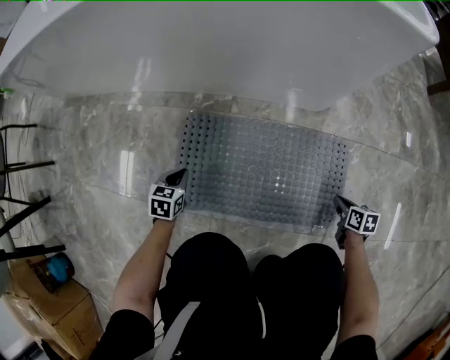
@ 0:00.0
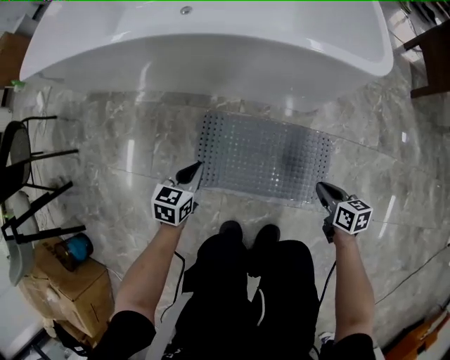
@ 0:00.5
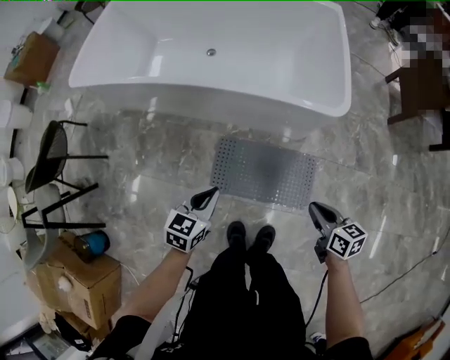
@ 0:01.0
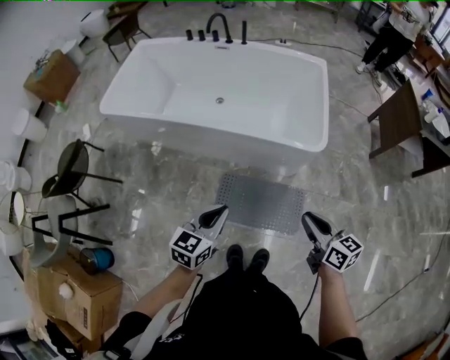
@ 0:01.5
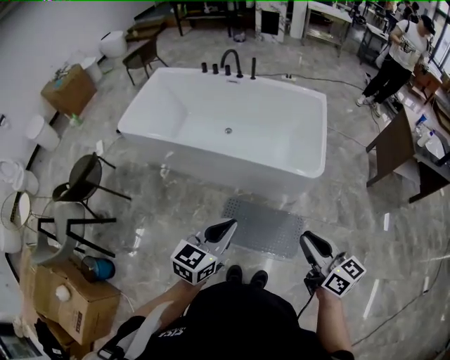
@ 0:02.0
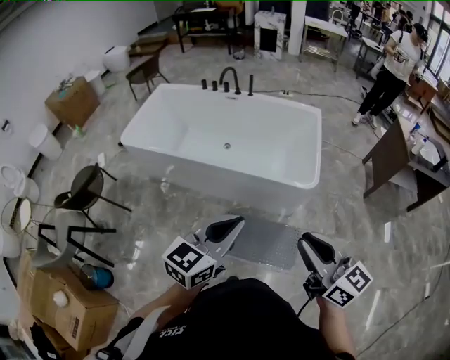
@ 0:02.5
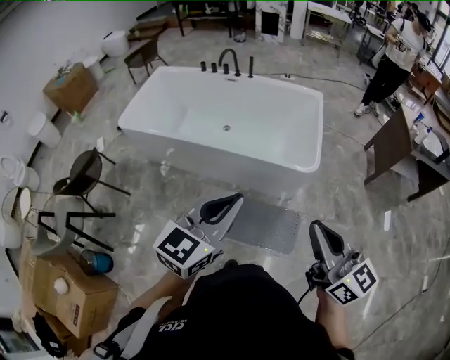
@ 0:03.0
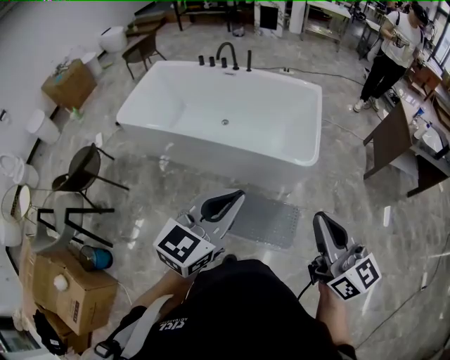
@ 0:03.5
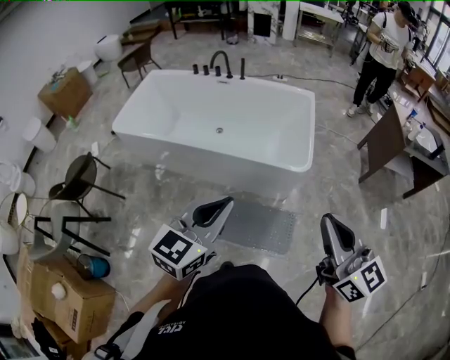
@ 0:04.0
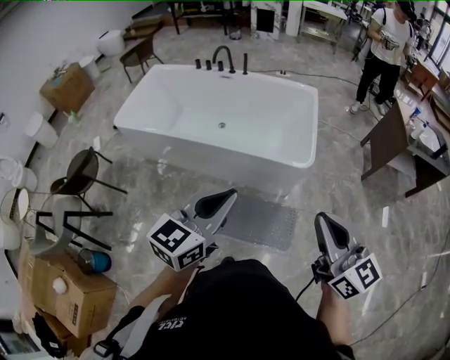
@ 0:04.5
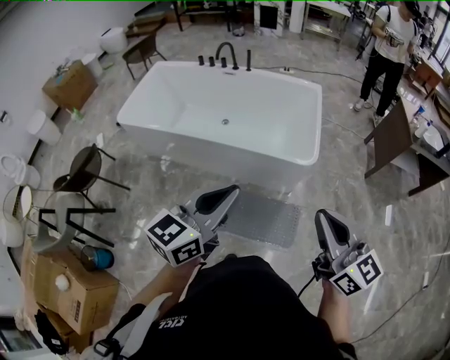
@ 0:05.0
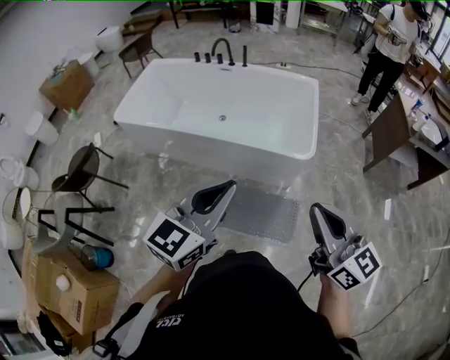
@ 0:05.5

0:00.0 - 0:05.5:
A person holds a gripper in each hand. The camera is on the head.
0:00.0 - 0:02.0: Both grippers move upward, some 90 cm. The left gripper points its fingers some 40 degrees further upward. The right gripper angles its fingers upward, by approximately 50 degrees.
0:02.0 - 0:03.5: The grippers both shift upward by about 15 cm.
0:03.5 - 0:05.5: The grippers make only small movements.

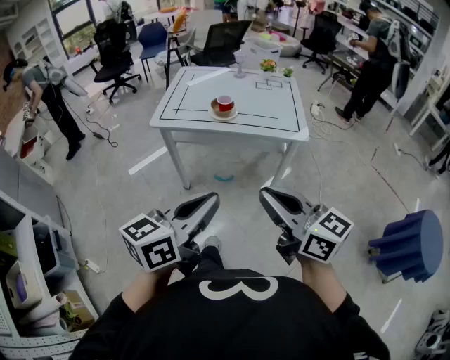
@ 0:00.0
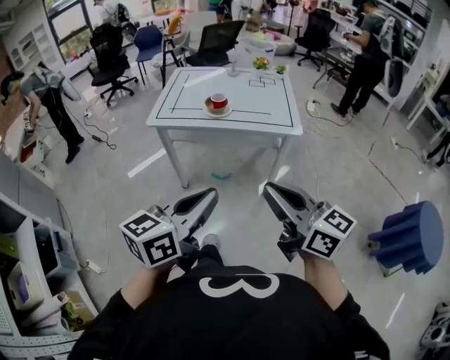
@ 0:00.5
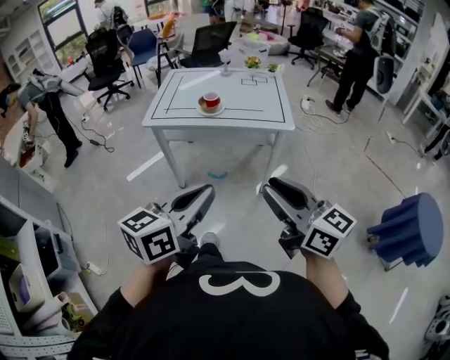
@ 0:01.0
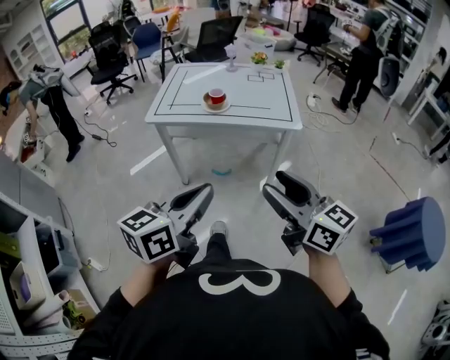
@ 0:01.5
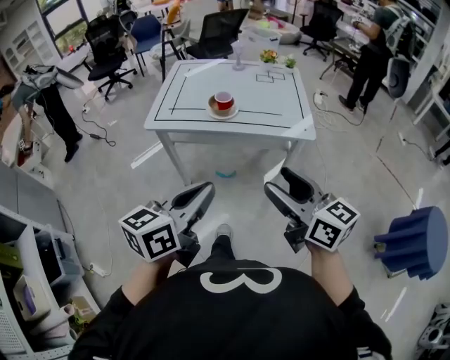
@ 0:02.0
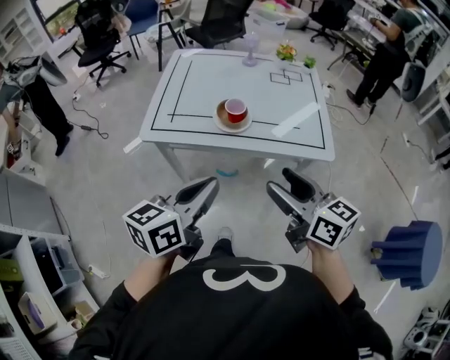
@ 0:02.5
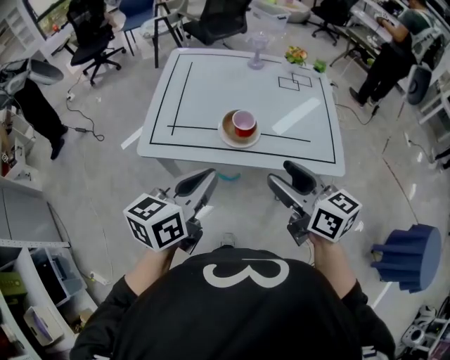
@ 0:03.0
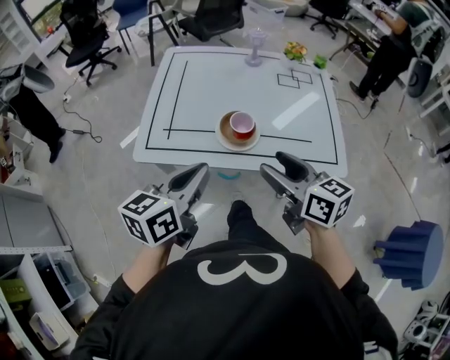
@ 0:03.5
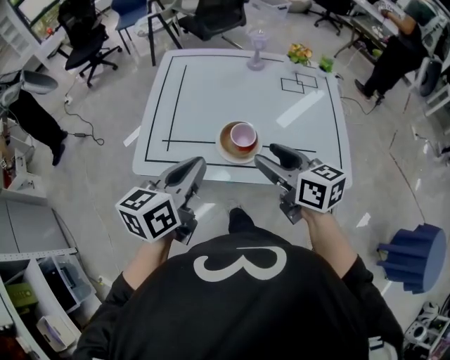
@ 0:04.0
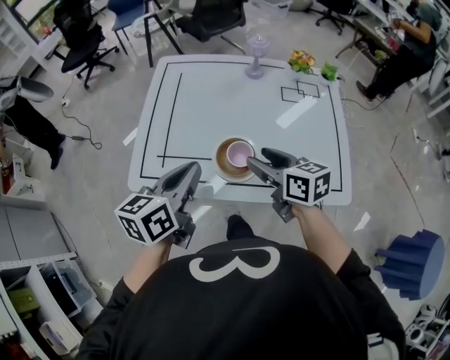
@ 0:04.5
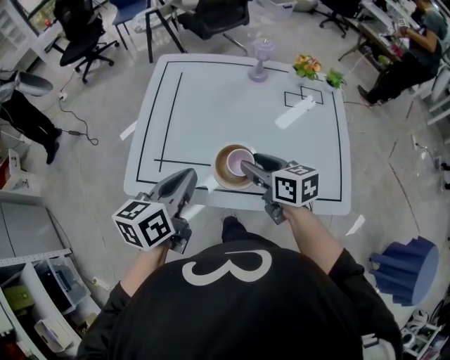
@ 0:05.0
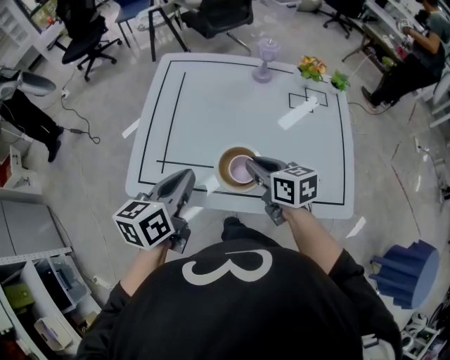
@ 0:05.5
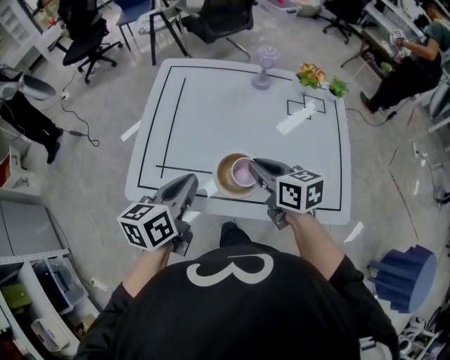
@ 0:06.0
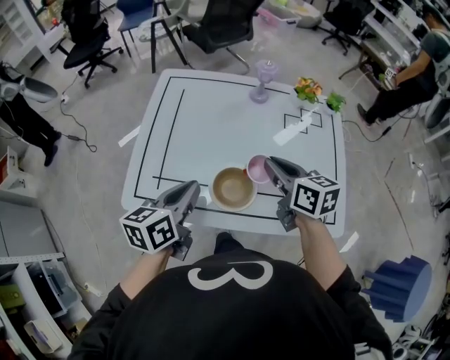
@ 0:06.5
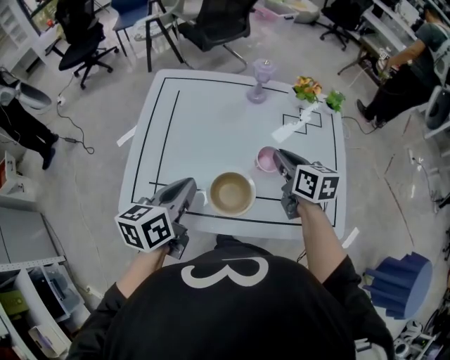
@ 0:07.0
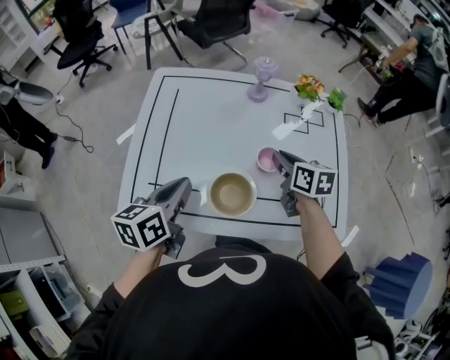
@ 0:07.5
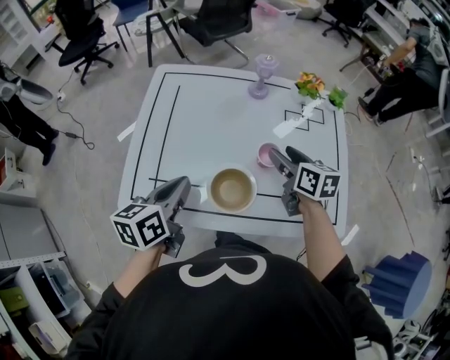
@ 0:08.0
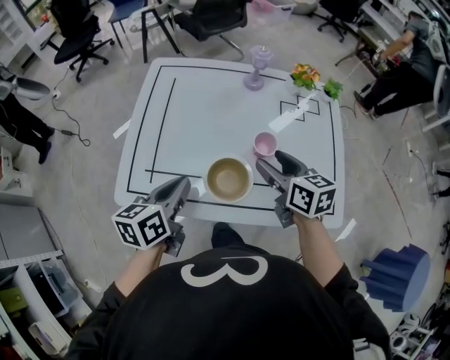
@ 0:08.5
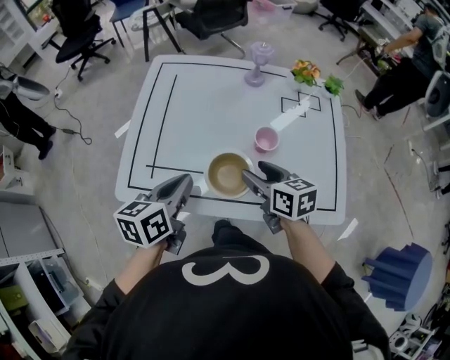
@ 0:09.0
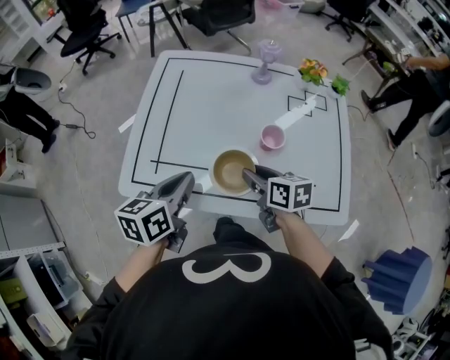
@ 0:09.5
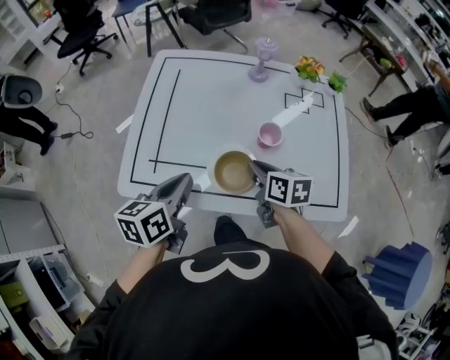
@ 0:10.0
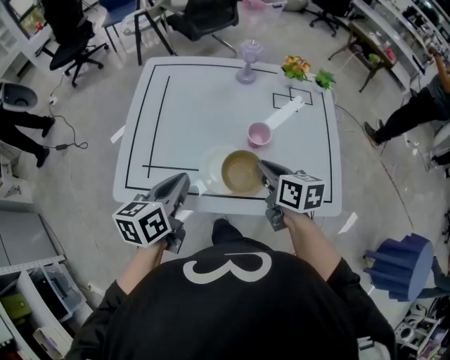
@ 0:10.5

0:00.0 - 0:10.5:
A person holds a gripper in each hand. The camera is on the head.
0:00.0 - 0:02.0: The two grippers go approximately 10 cm forward. The right gripper opens up.
0:02.0 - 0:04.0: Both grippers move forward, roughly 40 cm.
0:04.0 - 0:06.5: The left gripper travels forward and downward by roughly 10 cm. Meanwhile the right gripper goes roughly 15 cm forward, and closes its fingers.
0:06.5 - 0:08.5: The right gripper opens its fingers.
0:08.5 - 0:10.5: The right gripper closes up.

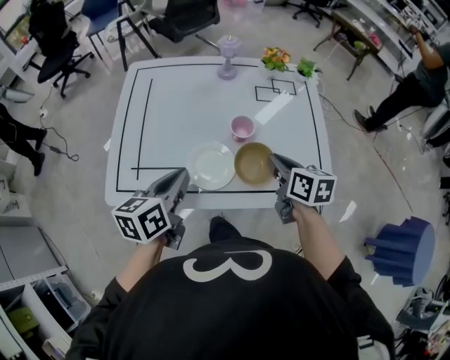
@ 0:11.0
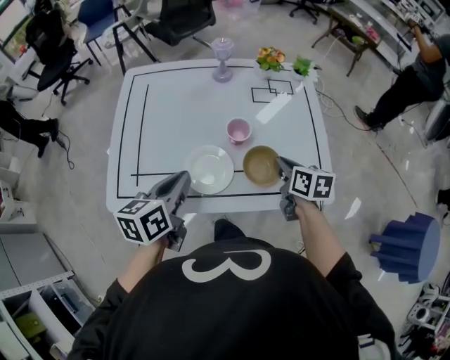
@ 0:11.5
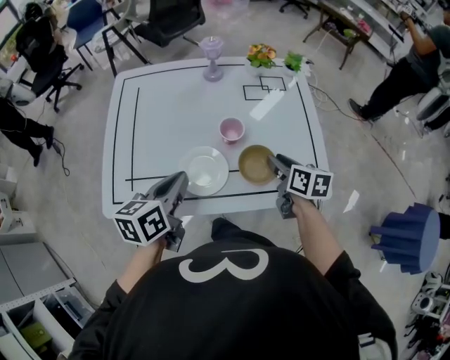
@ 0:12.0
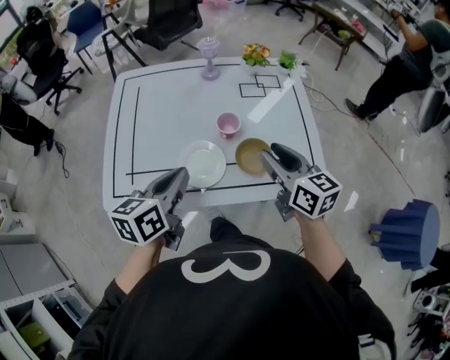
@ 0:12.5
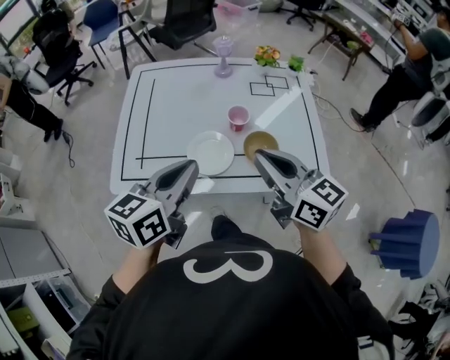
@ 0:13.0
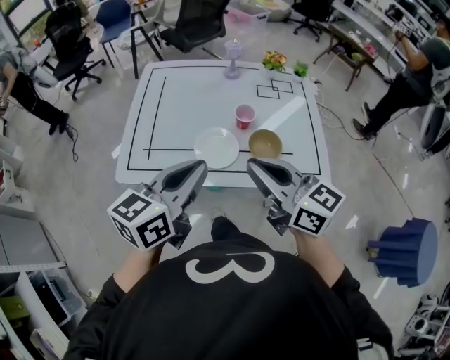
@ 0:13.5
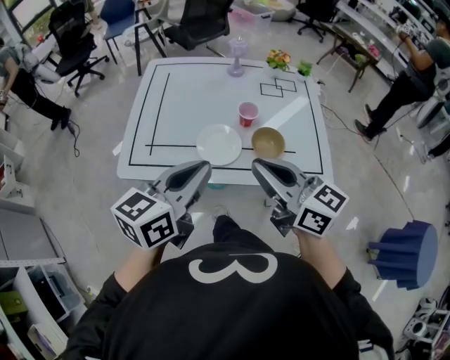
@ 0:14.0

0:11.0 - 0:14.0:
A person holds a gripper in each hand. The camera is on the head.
0:11.0 - 0:12.5: The right gripper heads upward, covering approximately 5 cm, rotates roughly 20 degrees, and opens up.
0:12.5 - 0:14.0: The right gripper shifts roughly 20 cm backward, to the left and upward, changes its angle by about 30 degrees, and closes its fingers. Meanwhile the left gripper heads backward and upward, covering some 15 cm.

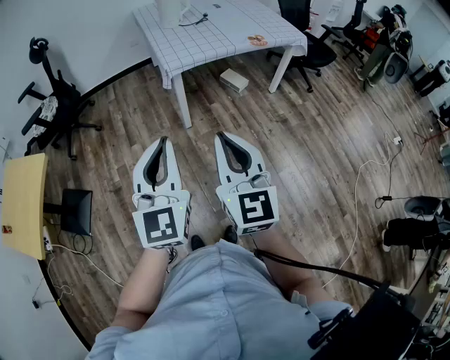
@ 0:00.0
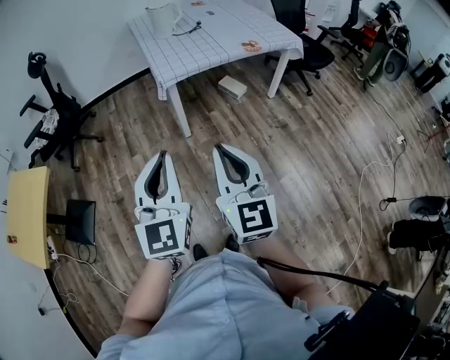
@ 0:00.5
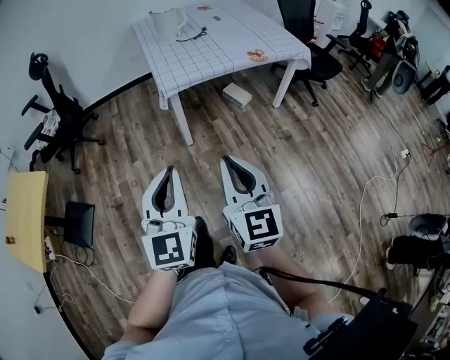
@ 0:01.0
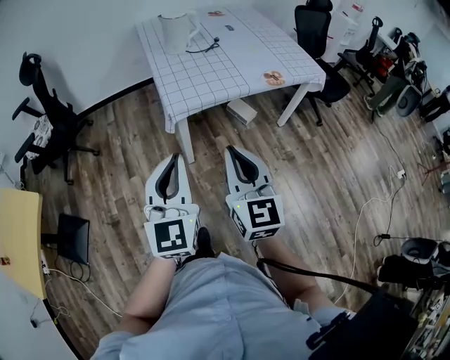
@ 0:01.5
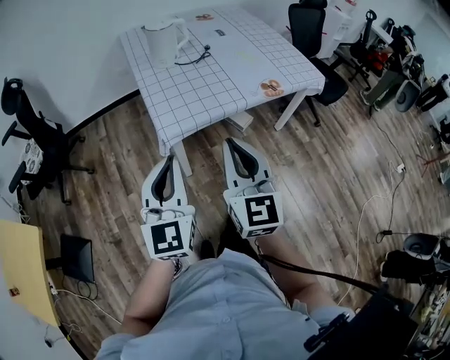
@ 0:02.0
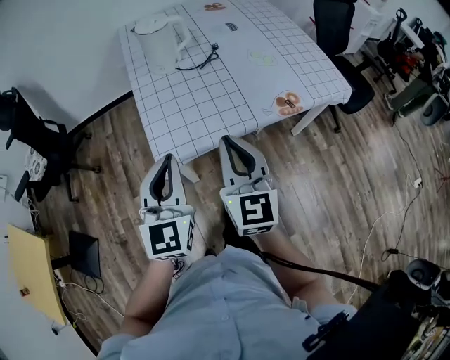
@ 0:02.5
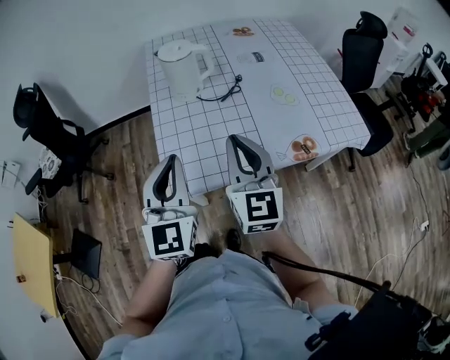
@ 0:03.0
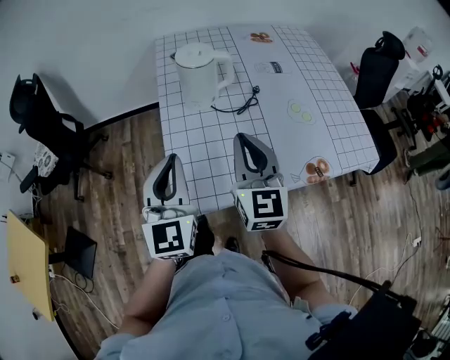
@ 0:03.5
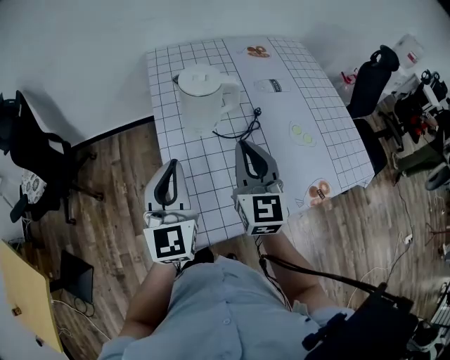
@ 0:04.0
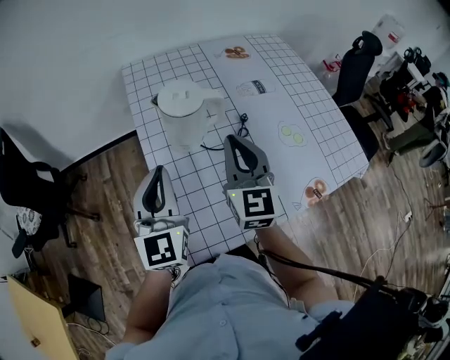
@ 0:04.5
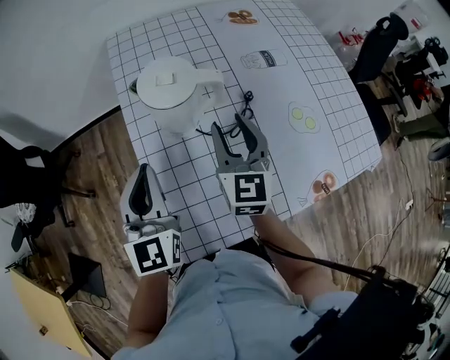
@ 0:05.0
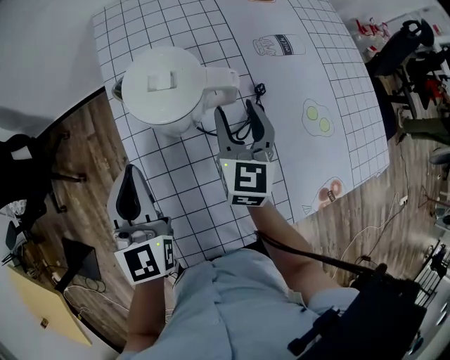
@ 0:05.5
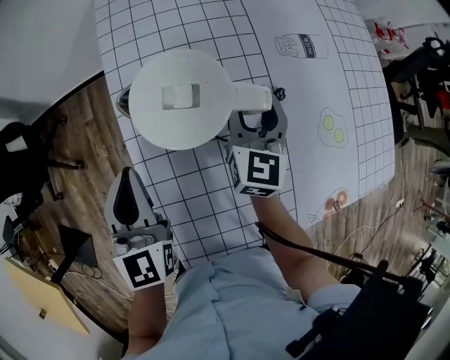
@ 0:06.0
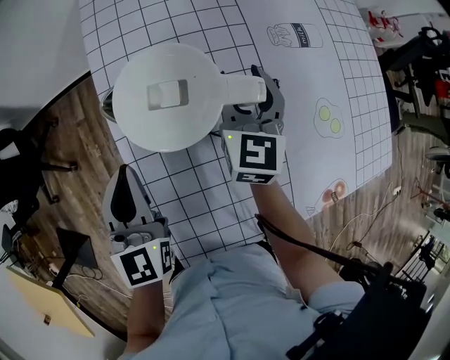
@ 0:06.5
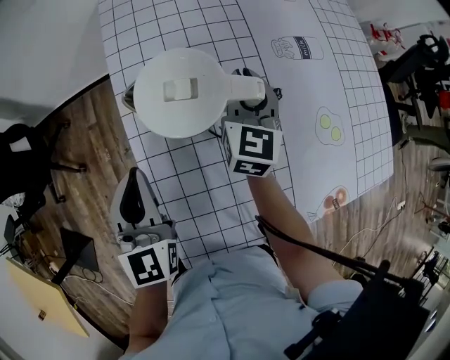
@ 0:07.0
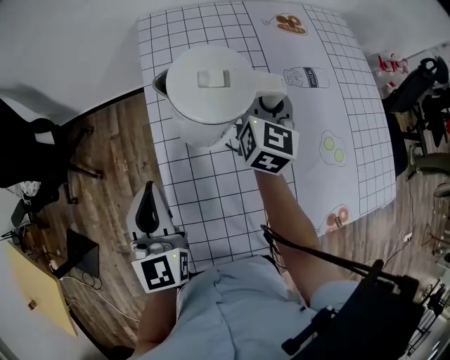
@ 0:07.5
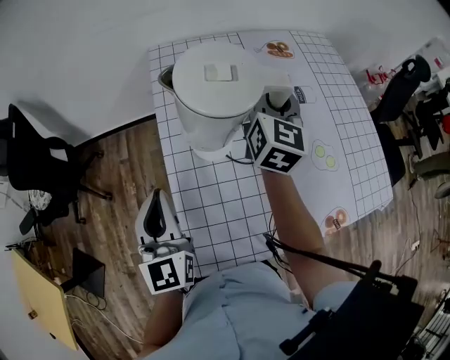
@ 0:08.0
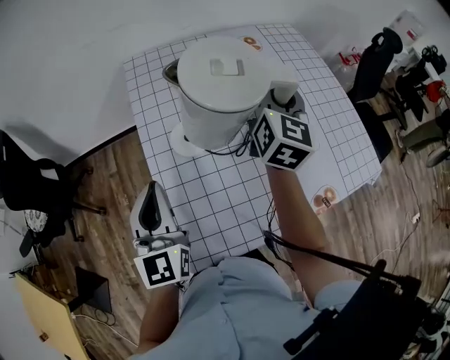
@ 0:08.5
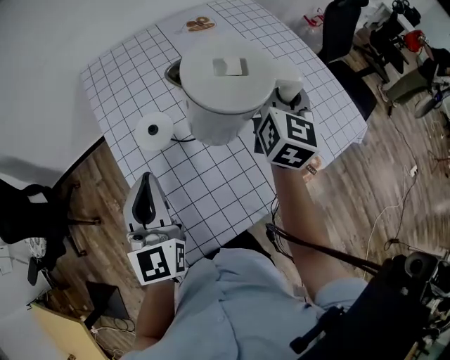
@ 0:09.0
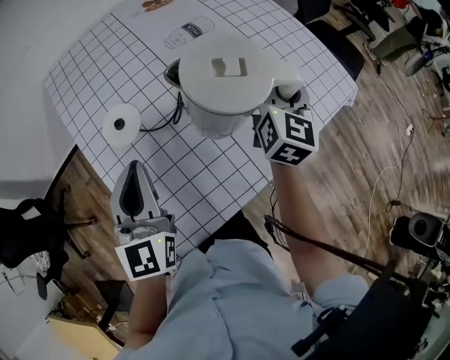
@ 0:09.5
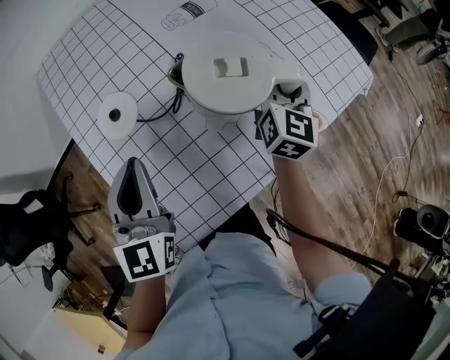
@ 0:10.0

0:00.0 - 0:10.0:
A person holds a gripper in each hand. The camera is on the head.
0:00.0 - 0:02.0: Both grippers move forward, roughly 35 cm.
0:02.0 - 0:04.0: The pair of grippers is taken forward, approximately 40 cm.
0:04.0 - 0:06.0: The two grippers go roughly 25 cm forward and downward. The right gripper opens.
0:06.0 - 0:08.0: The right gripper shifts roughly 20 cm upward, and closes. Meanwhile the left gripper travels backward and upward by about 10 cm.
0:08.0 - 0:10.0: The left gripper ends up about 20 cm from where it was, and turns by roughly 30 degrees, while the right gripper moves roughly 35 cm, and swivels approximately 30 degrees.
